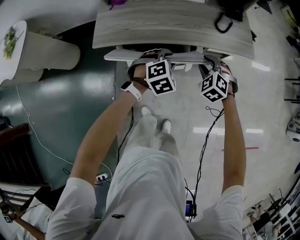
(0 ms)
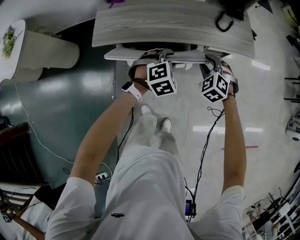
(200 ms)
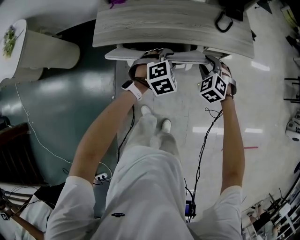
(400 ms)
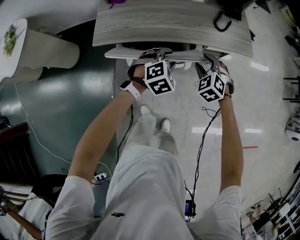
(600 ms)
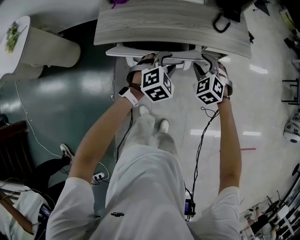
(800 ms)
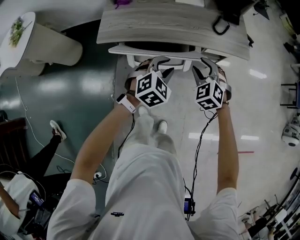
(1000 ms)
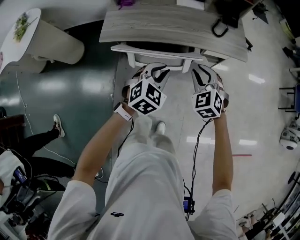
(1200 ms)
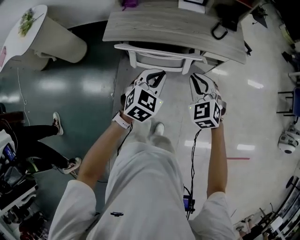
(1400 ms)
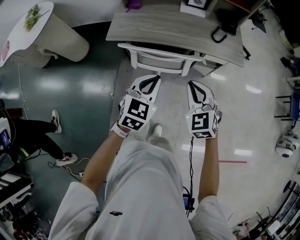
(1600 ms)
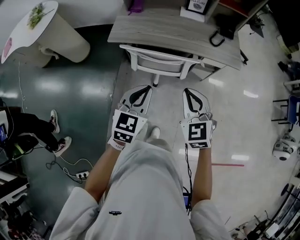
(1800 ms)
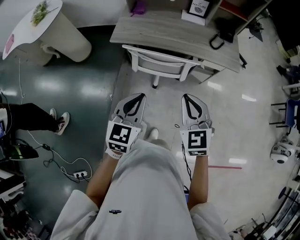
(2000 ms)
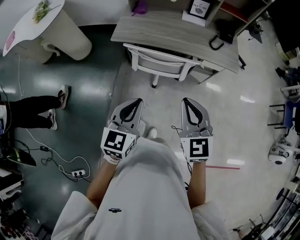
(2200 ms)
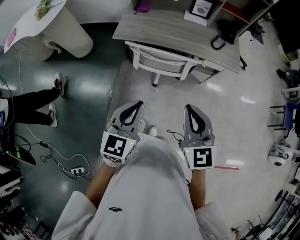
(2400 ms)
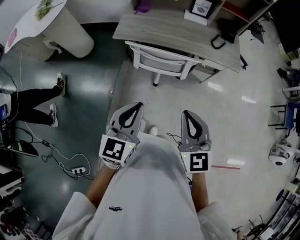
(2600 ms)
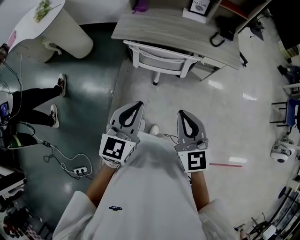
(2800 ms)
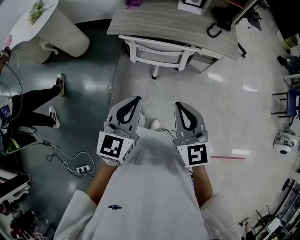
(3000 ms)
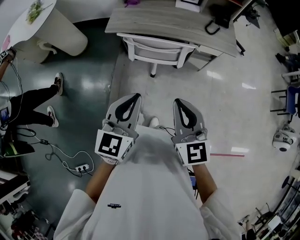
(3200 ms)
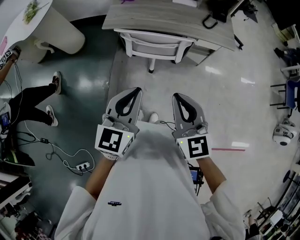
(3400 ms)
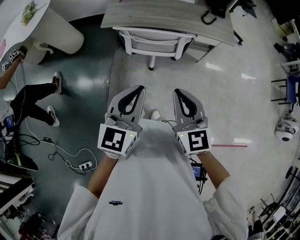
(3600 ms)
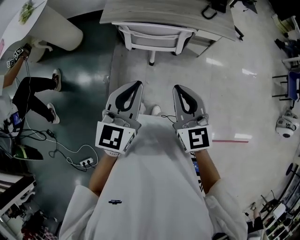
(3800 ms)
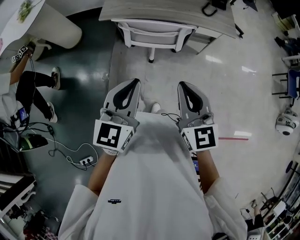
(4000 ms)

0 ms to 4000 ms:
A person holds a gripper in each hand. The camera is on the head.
0 ms to 1400 ms: Both grippers move backward and upward, about 20 cm. The left gripper turns by about 40 degrees, and closes its fingers. The right gripper rotates roughly 20 degrees, and closes its fingers.
1400 ms to 2600 ms: The right gripper travels backward and upward by some 25 cm, and turns by roughly 30 degrees, while the left gripper is displaced backward, upward and to the left by approximately 25 cm, and swivels approximately 30 degrees.
2600 ms to 4000 ms: There are only small adjustments of the grippers.

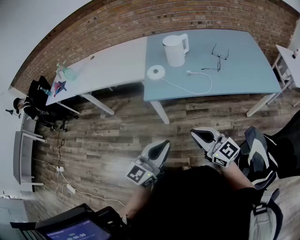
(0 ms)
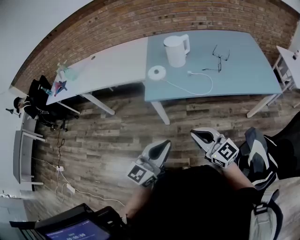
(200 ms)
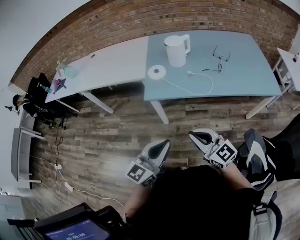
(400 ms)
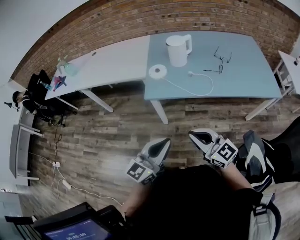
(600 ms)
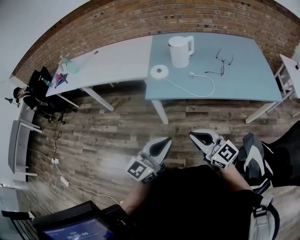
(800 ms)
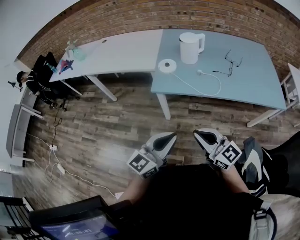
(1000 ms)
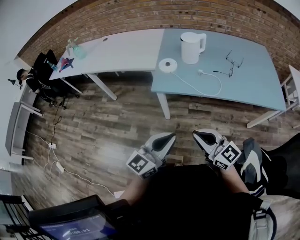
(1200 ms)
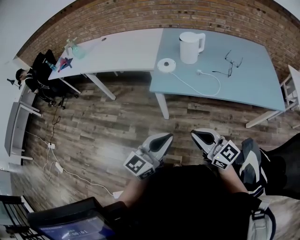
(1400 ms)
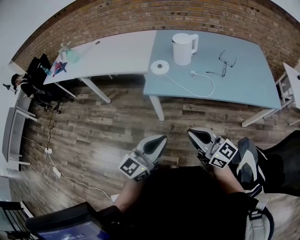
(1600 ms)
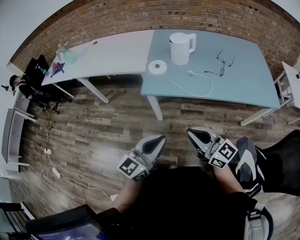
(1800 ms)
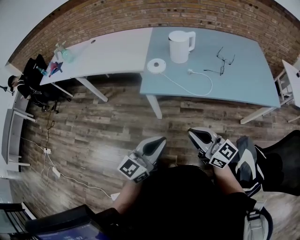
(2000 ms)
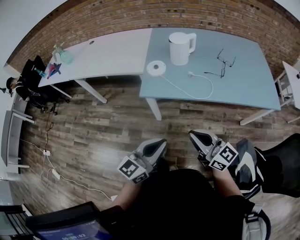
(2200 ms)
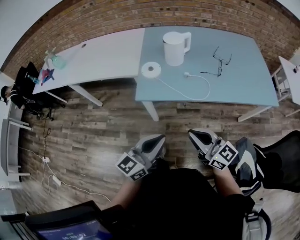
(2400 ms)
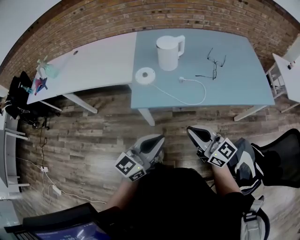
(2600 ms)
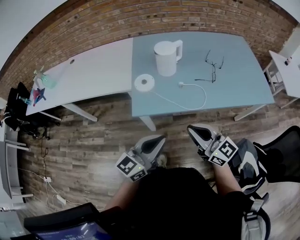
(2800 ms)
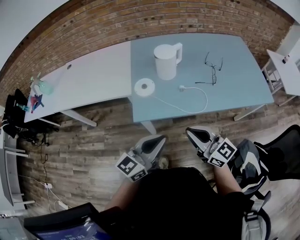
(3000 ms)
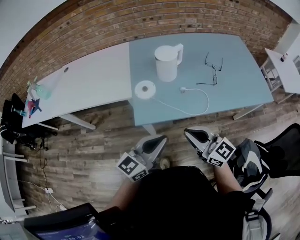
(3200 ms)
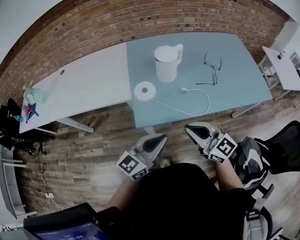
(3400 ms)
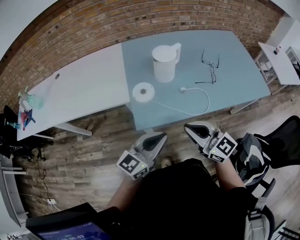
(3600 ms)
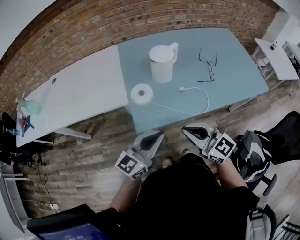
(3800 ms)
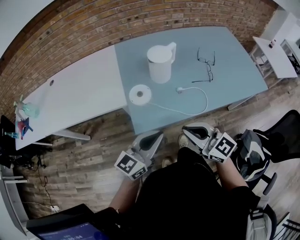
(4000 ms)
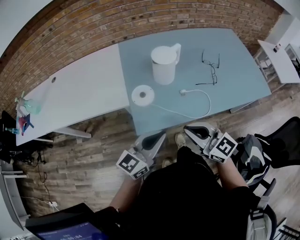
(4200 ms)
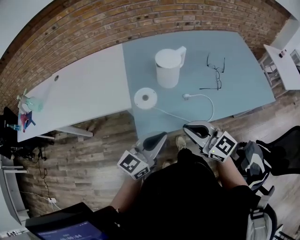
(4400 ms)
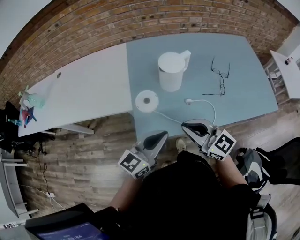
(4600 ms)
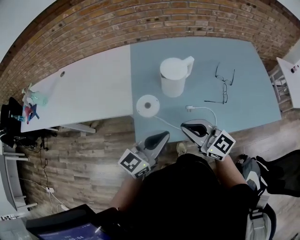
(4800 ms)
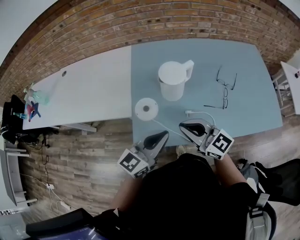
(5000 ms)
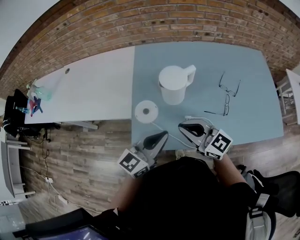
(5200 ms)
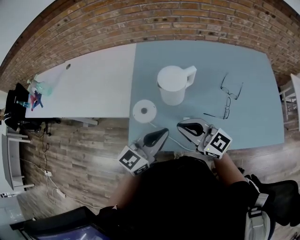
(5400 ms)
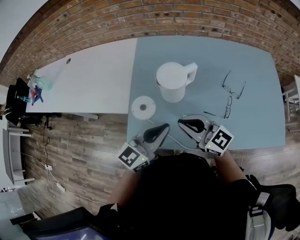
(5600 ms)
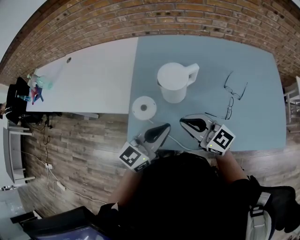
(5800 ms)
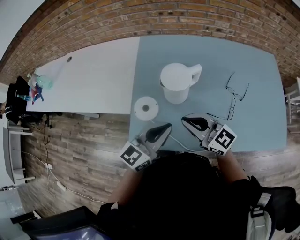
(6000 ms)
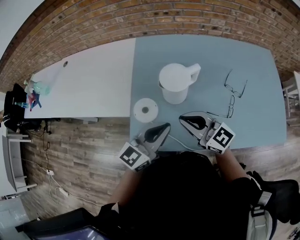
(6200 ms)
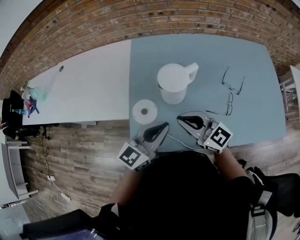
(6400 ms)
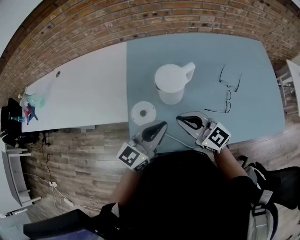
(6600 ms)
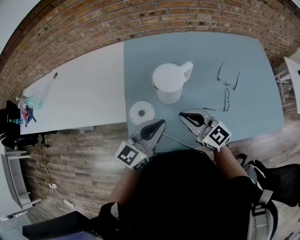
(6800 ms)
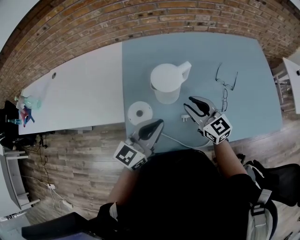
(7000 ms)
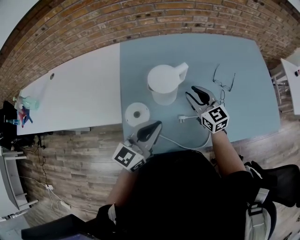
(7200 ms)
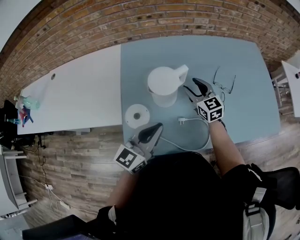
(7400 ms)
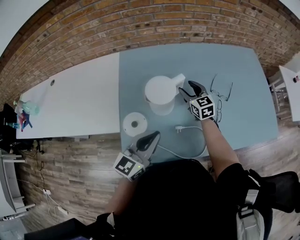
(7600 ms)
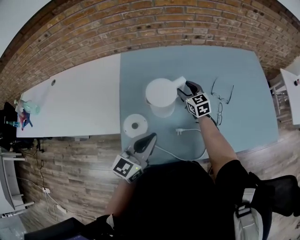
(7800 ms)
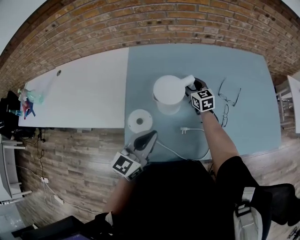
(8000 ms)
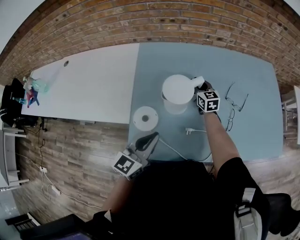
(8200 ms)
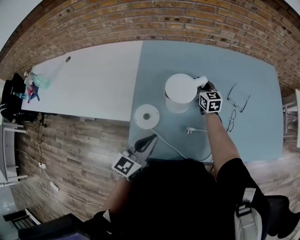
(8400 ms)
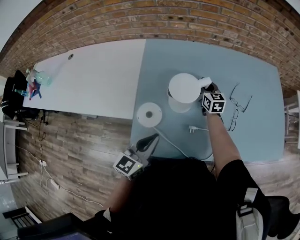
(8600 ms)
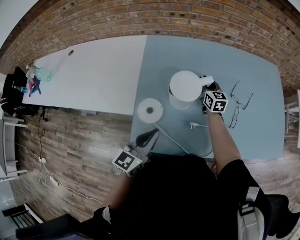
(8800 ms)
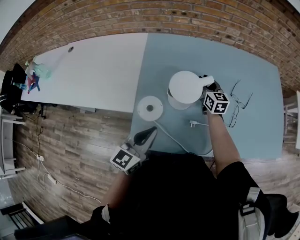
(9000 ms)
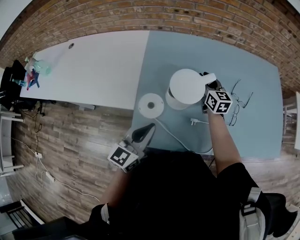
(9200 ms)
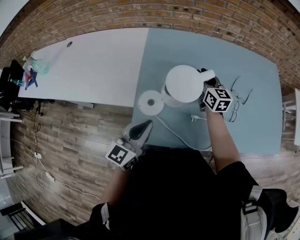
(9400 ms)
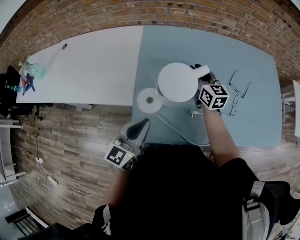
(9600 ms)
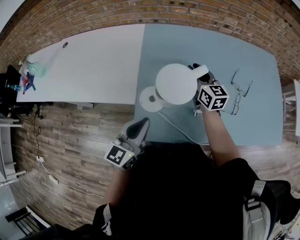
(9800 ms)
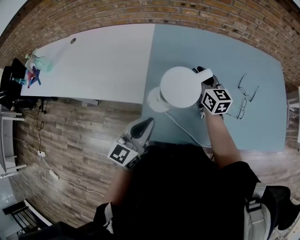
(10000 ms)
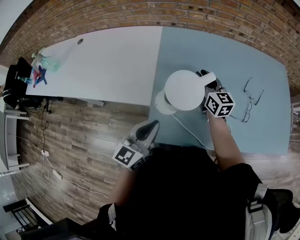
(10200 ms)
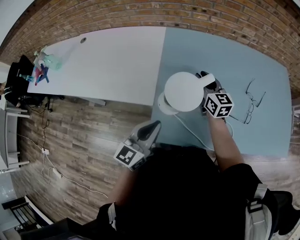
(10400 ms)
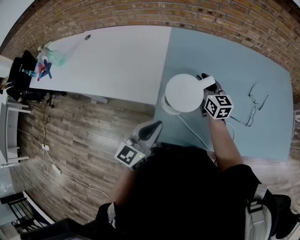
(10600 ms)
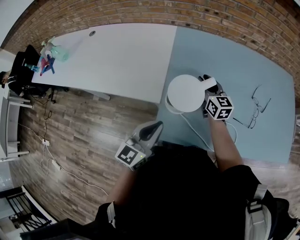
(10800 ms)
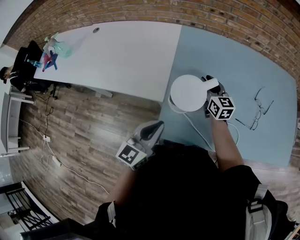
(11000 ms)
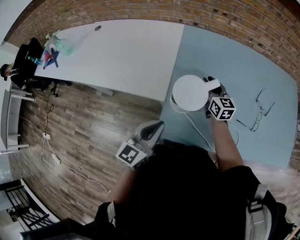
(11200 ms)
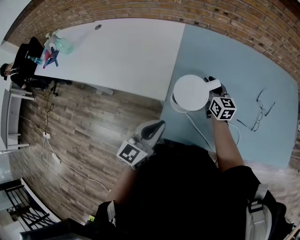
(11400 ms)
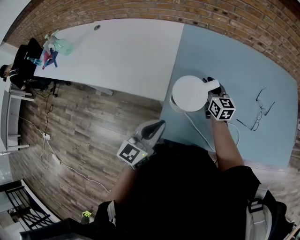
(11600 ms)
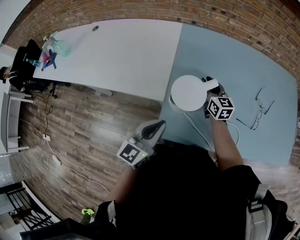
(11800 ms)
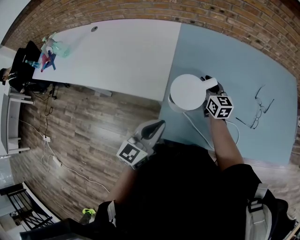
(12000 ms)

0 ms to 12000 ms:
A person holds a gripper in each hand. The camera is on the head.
0 ms to 1600 ms: The grippers make only small movements.
1600 ms to 3000 ms: The two grippers go about 15 cm forward.
3000 ms to 4400 ms: The right gripper goes about 10 cm forward and to the left. The left gripper goes approximately 10 cm forward.
4400 ms to 6000 ms: The grippers both shift forward and to the right by about 15 cm.
6000 ms to 7600 ms: The right gripper travels forward, downward and to the right by about 25 cm, changes its angle by about 40 degrees, and opens up.
7600 ms to 9000 ms: The left gripper heads to the left, covering approximately 5 cm, while the right gripper closes up.
9000 ms to 10400 ms: The left gripper moves to the left, approximately 10 cm, while the right gripper travels to the left, upward and backward by approximately 15 cm.
10400 ms to 12000 ms: The right gripper is displaced downward by roughly 5 cm.

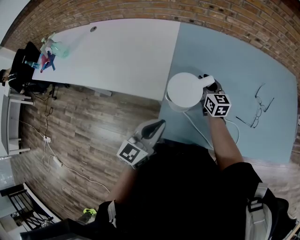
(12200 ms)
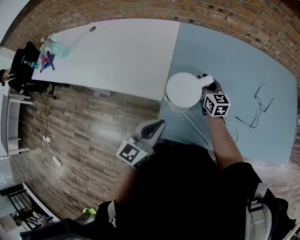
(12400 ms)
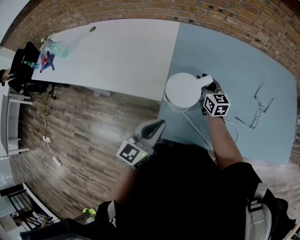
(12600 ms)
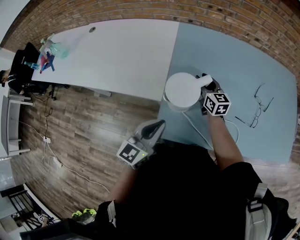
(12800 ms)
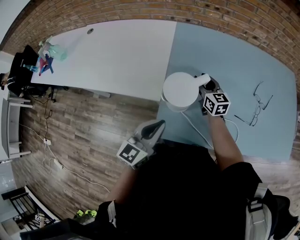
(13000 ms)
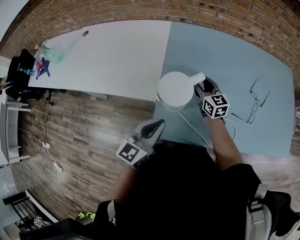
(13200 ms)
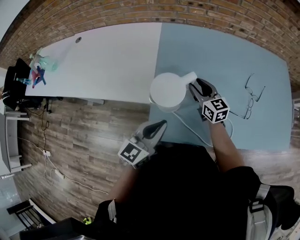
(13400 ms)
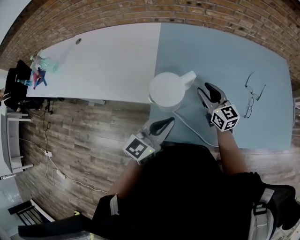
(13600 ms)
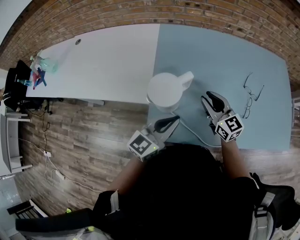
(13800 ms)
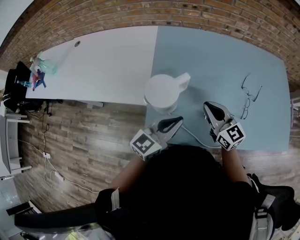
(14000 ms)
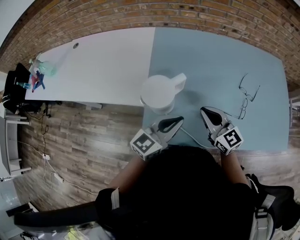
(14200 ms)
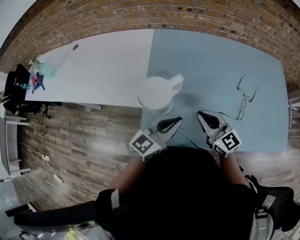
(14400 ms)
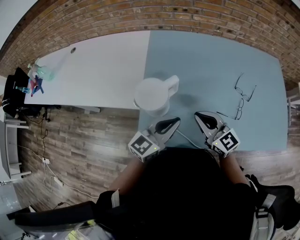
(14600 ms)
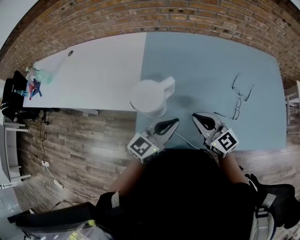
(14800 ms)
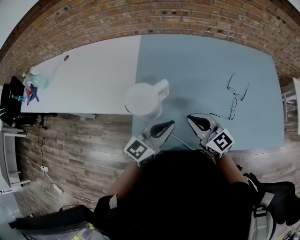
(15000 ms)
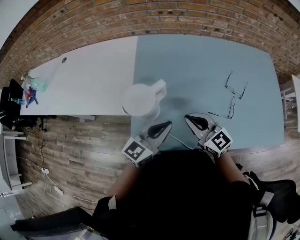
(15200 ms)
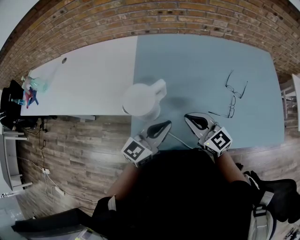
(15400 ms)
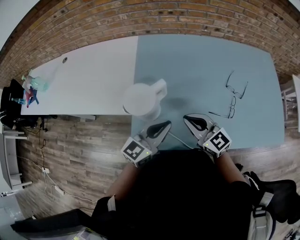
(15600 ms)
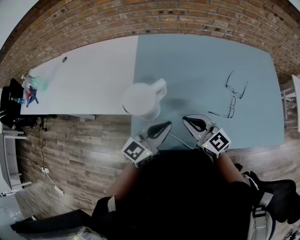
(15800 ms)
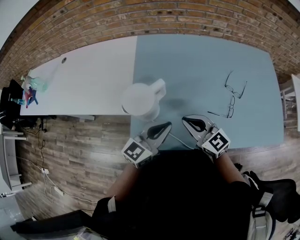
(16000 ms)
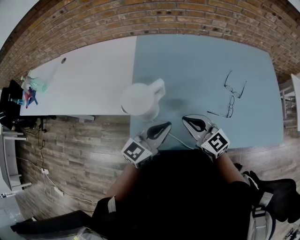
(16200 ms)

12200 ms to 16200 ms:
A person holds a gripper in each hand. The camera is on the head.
12200 ms to 13600 ms: The left gripper heads to the right, covering roughly 10 cm. Meanwhile the right gripper heads backward and to the right, covering about 10 cm.
13600 ms to 14800 ms: The right gripper is displaced backward by about 10 cm, and closes its fingers; the left gripper goes roughly 10 cm to the right.
14800 ms to 16200 ms: Neither gripper changes place.

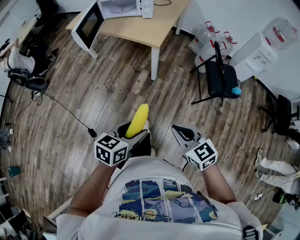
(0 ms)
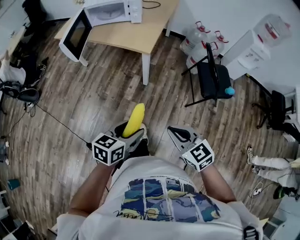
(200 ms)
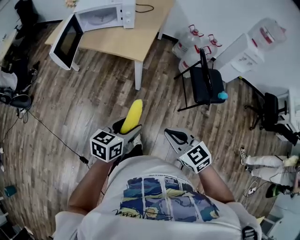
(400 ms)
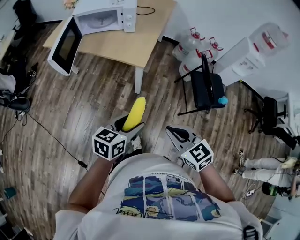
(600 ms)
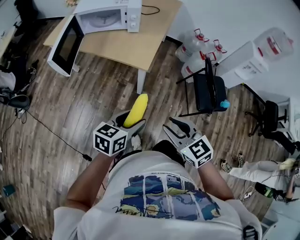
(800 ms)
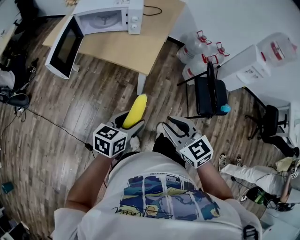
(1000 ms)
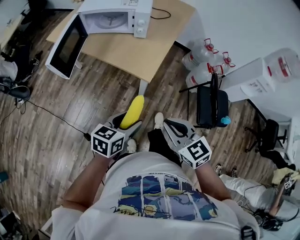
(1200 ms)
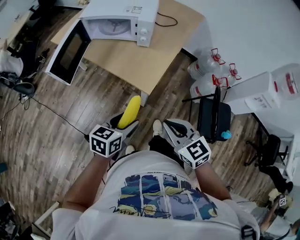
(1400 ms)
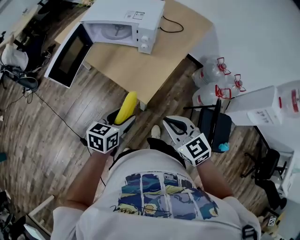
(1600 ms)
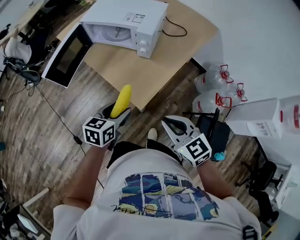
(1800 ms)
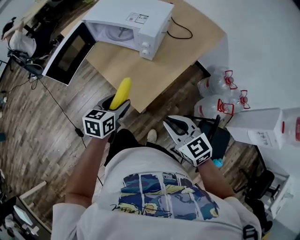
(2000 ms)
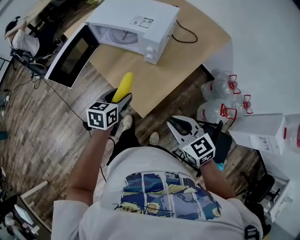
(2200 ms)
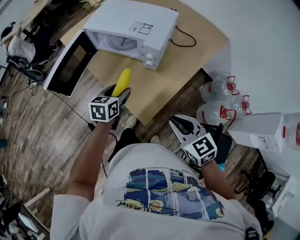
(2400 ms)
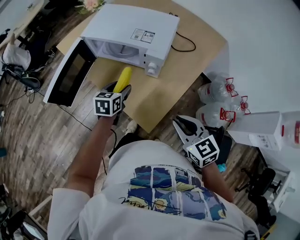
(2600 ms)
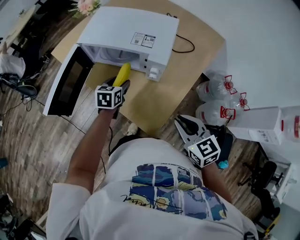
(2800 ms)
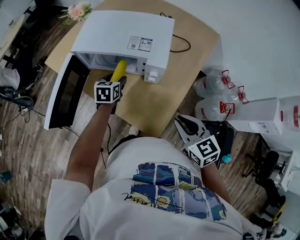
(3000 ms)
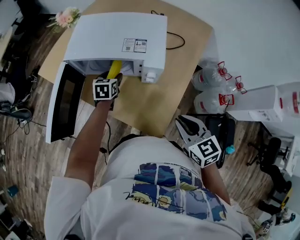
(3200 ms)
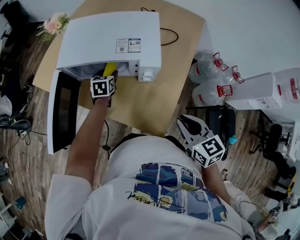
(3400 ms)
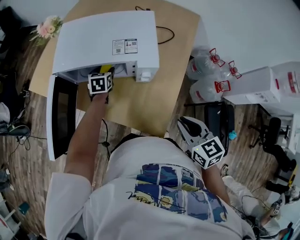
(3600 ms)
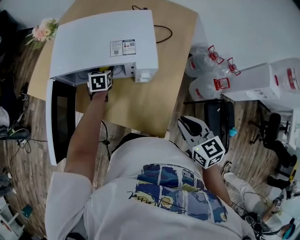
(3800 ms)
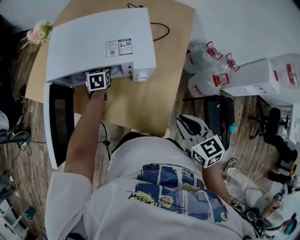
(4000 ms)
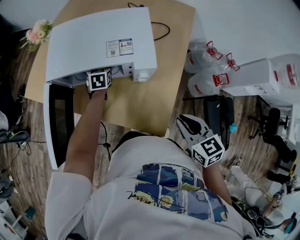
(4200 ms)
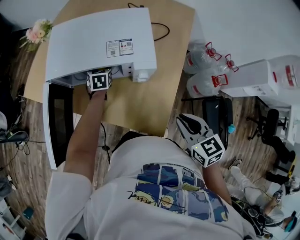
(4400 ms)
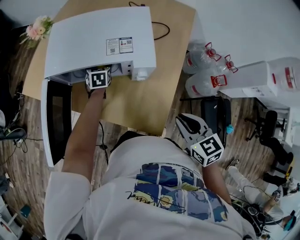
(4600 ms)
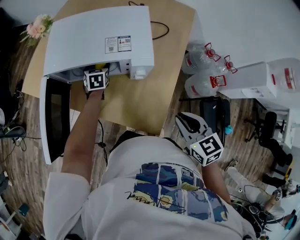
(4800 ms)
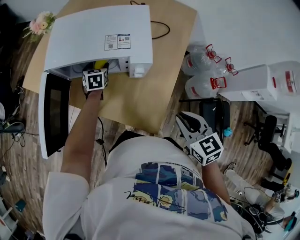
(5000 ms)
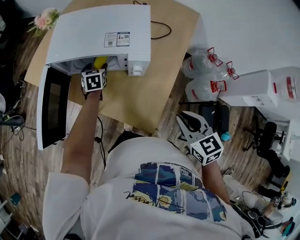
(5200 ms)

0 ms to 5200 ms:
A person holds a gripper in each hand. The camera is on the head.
0 ms to 1800 ms: Both grippers are carried approximately 50 cm. The right gripper rotates some 20 degrees, and opens, then closes again; the left gripper rotates some 30 degrees.
1800 ms to 3400 ms: The left gripper heads forward, covering about 40 cm, while the right gripper shifts roughly 20 cm forward, and turns by some 30 degrees.
3400 ms to 5200 ms: The grippers stay close to where they were, moving slightly.
